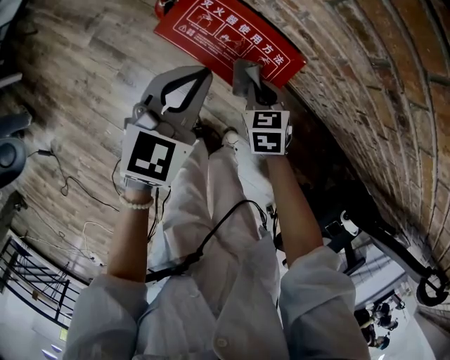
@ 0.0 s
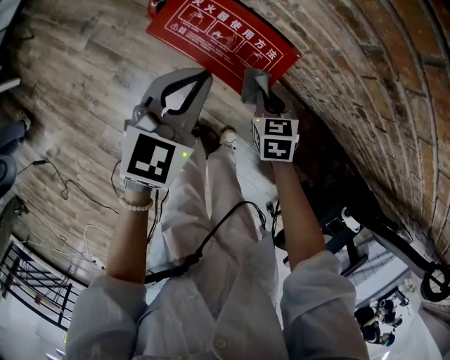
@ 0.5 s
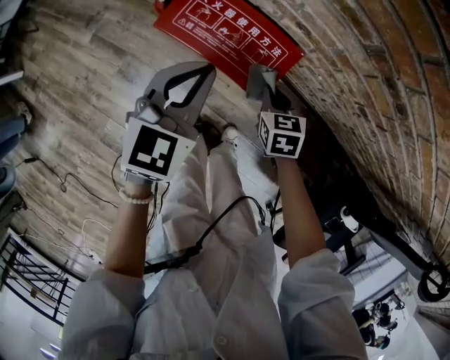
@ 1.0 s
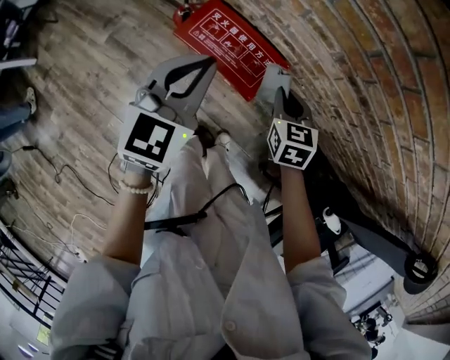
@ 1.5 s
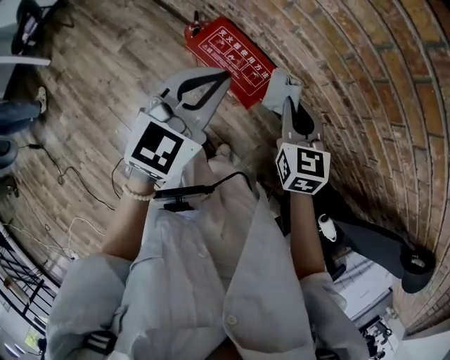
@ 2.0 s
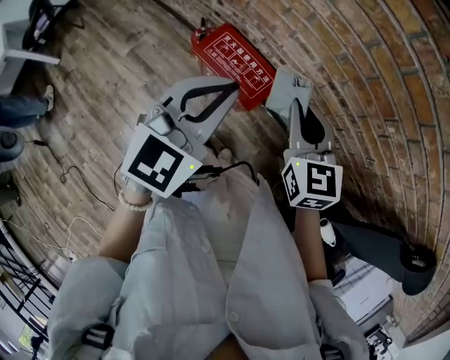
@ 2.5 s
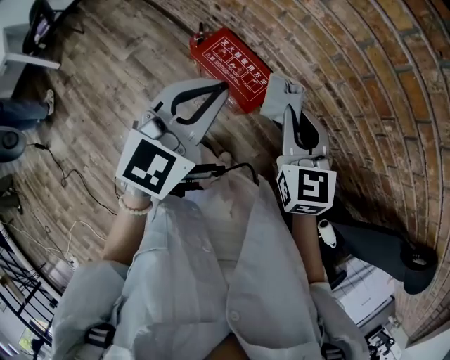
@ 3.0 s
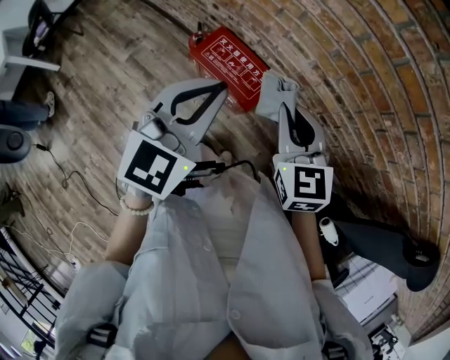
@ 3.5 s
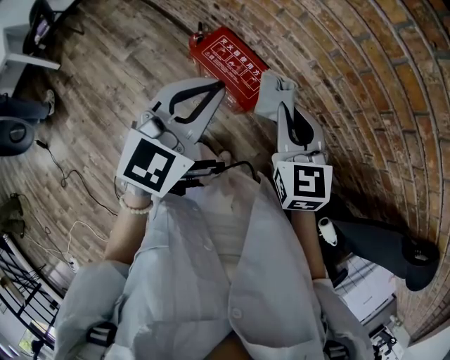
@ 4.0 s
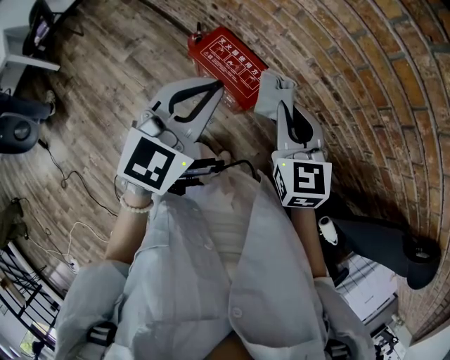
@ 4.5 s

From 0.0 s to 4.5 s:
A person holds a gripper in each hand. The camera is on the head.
From 0.0 s to 2.0 s: Both grippers travel together upward, some 30 cm. The right gripper rotates some 20 degrees.
From 2.0 s to 4.5 s: Both grippers travel together upward and backward, some 10 cm.

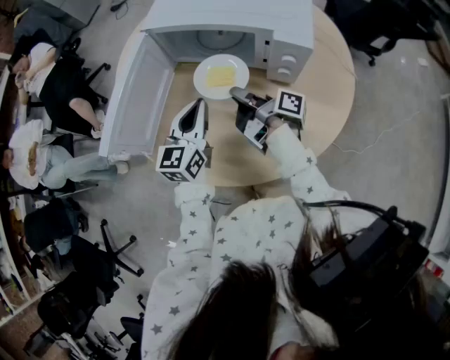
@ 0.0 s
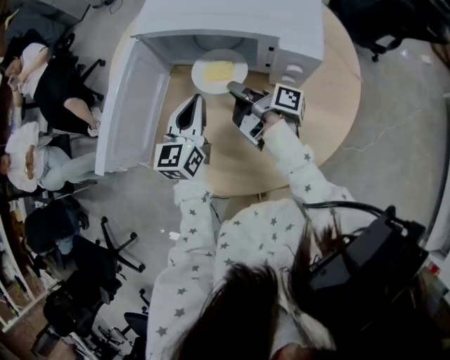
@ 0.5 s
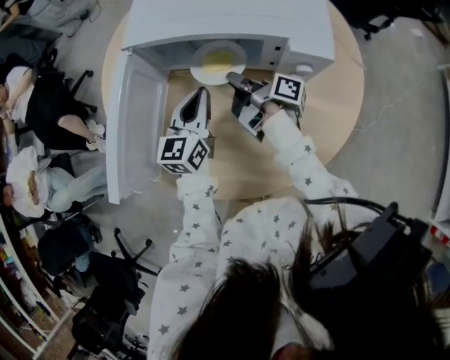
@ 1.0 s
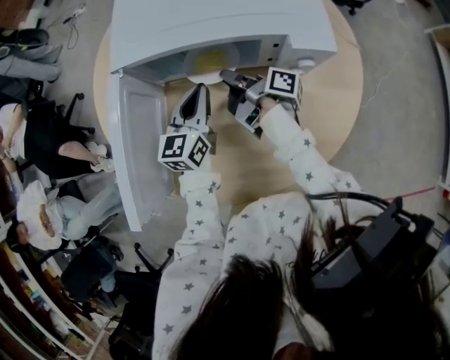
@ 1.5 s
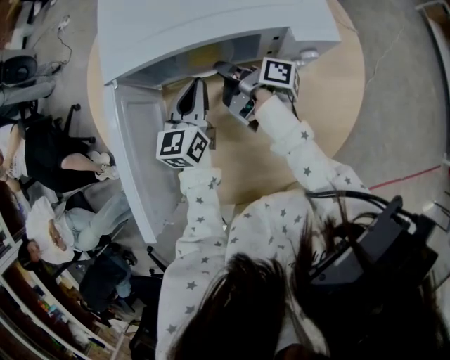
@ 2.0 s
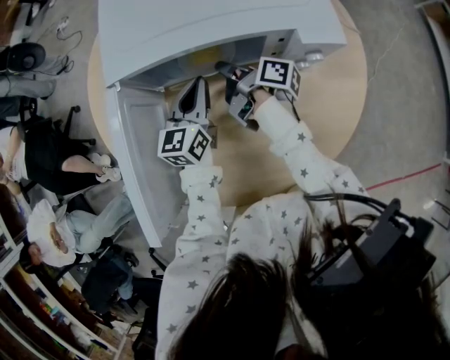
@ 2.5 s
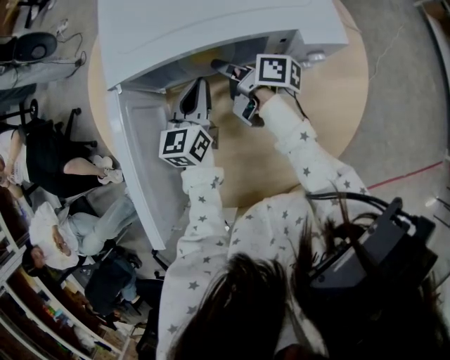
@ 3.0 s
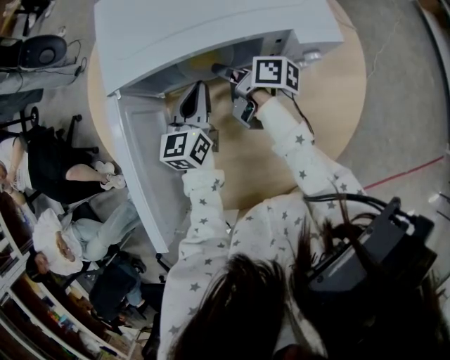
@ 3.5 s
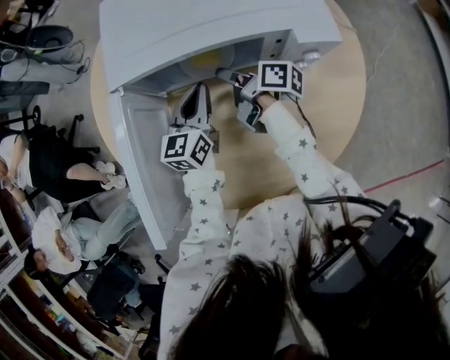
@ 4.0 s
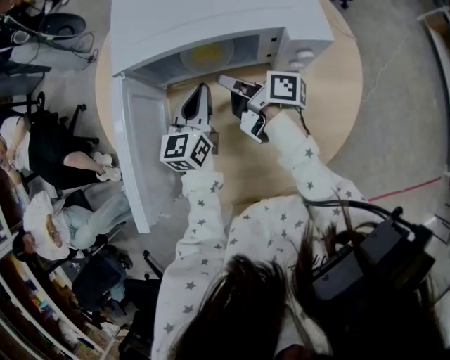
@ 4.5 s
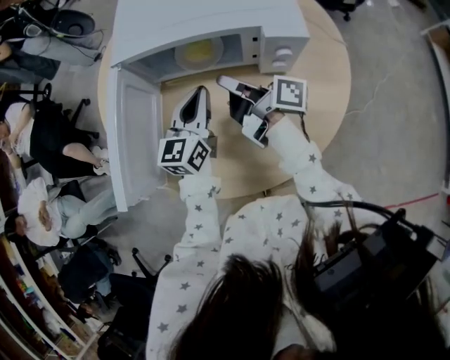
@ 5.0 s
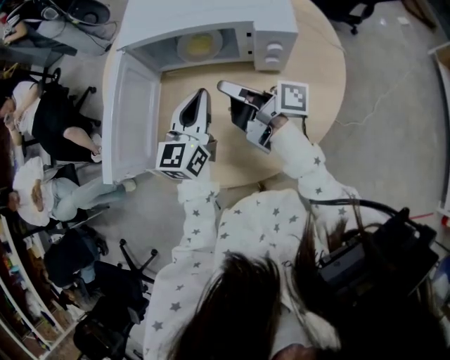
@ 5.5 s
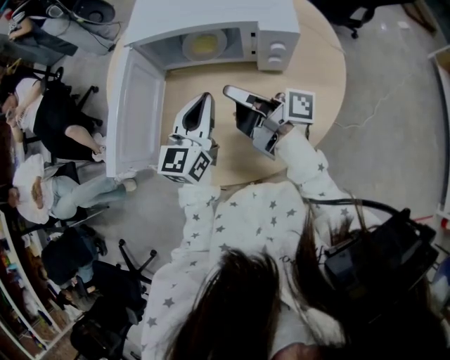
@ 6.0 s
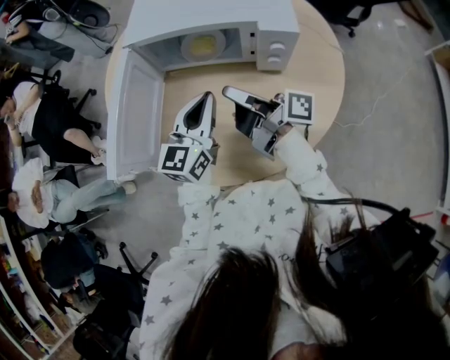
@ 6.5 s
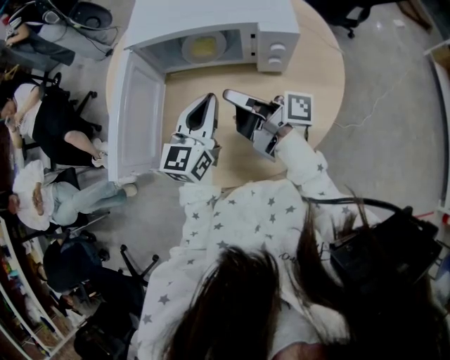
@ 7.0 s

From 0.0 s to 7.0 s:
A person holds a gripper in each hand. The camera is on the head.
From 0.0 s to 2.0 s: The left gripper shifts by roughly 5 cm.
From 3.5 s to 5.0 s: The left gripper changes place by some 10 cm.
From 5.0 s to 7.0 s: The left gripper shifts by roughly 10 cm.

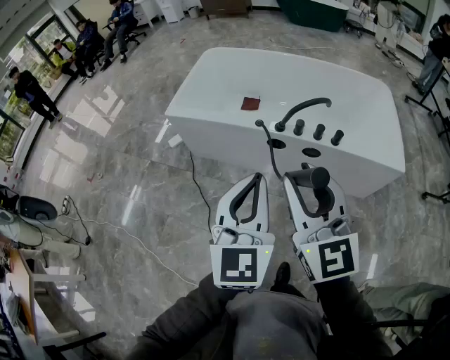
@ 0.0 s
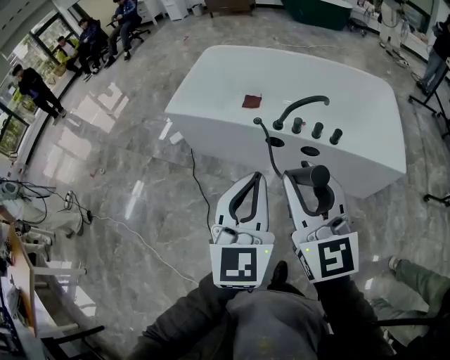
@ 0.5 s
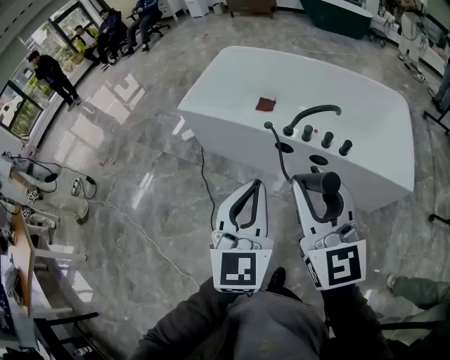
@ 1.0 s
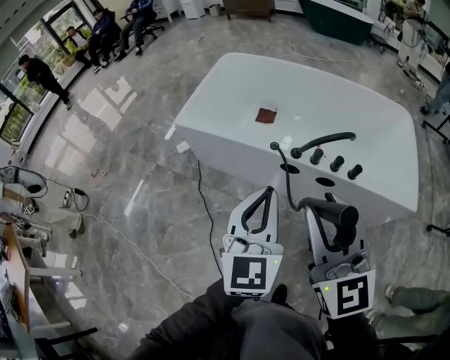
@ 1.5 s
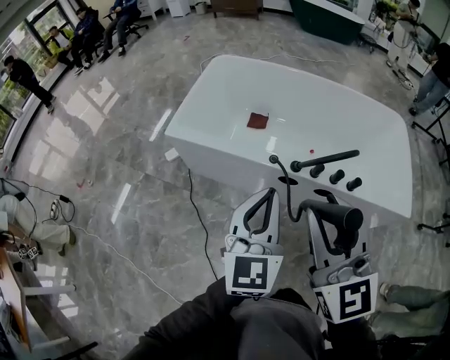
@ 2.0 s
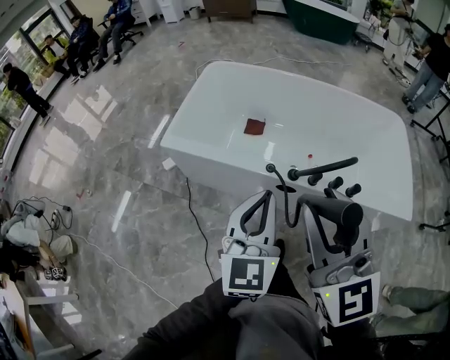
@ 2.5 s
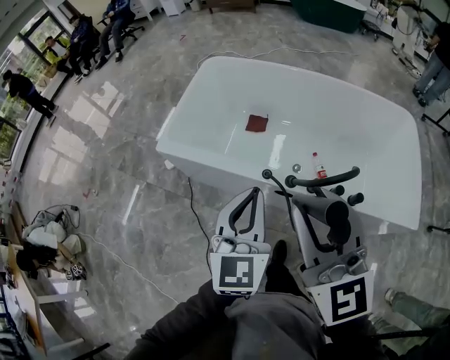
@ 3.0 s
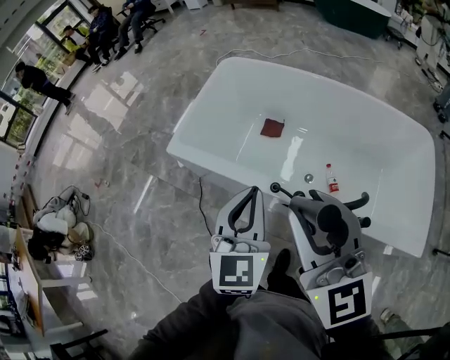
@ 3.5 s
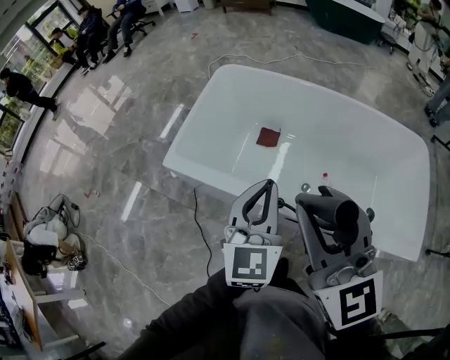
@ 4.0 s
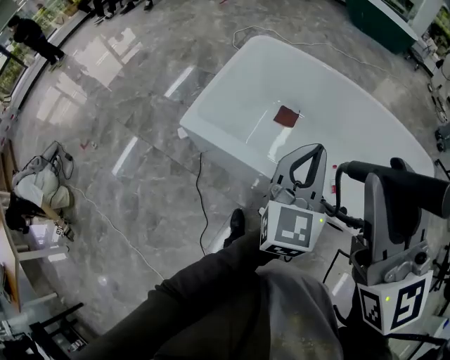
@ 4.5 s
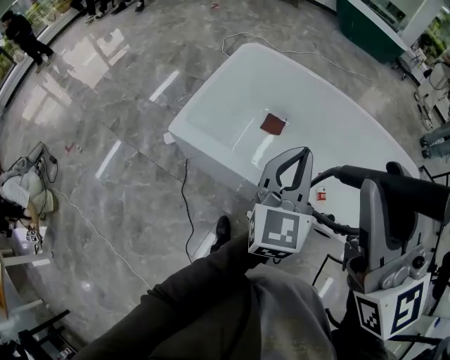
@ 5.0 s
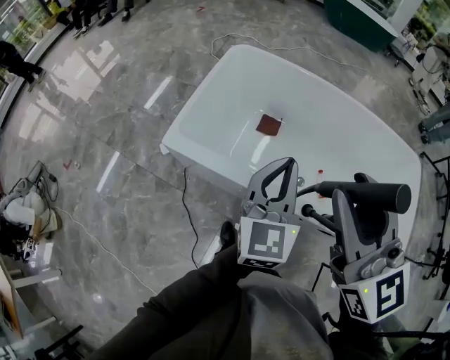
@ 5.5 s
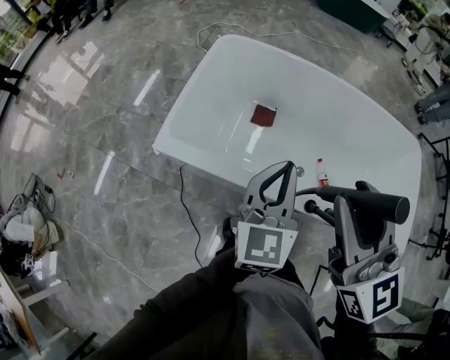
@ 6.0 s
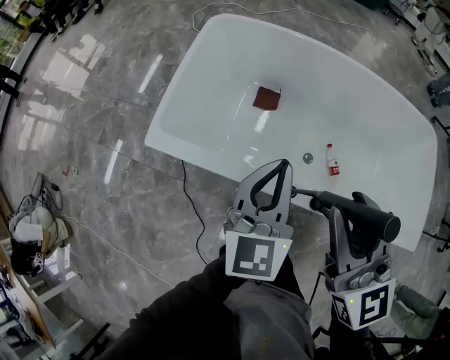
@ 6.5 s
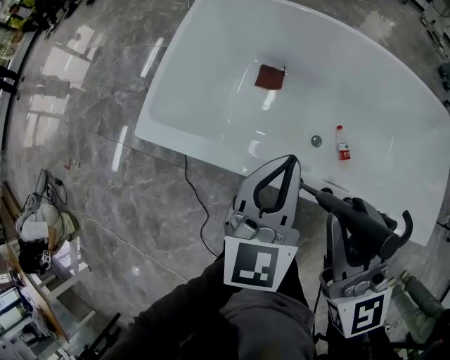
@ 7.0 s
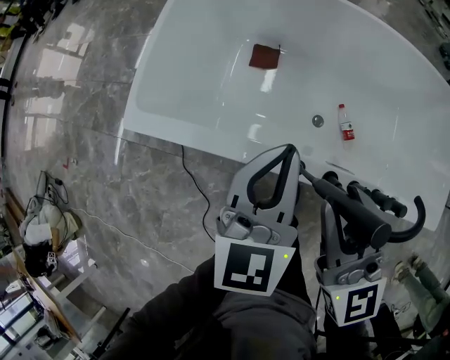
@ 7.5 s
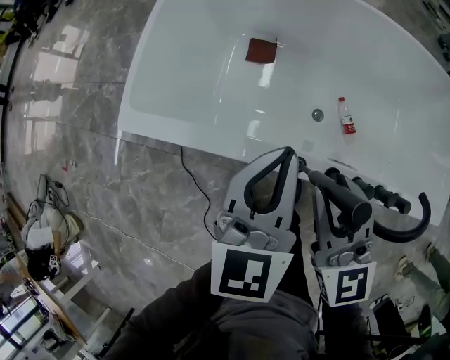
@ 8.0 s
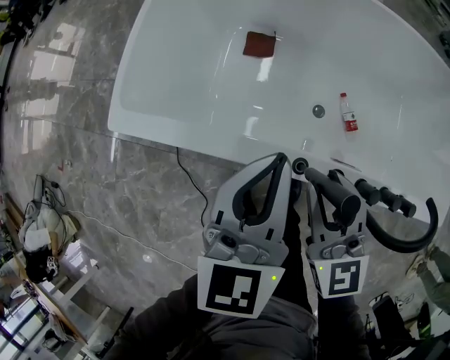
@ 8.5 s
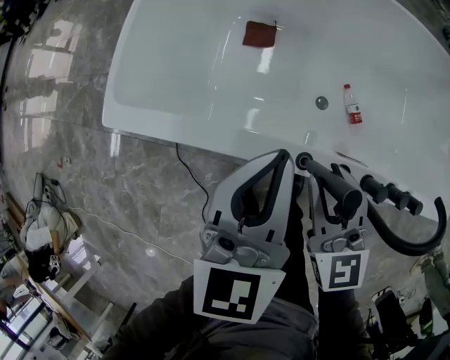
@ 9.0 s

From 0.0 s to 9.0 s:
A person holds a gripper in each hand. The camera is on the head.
From 0.0 s to 2.0 s: The two grippers go about 15 cm forward.
From 2.0 s to 4.5 s: Both grippers travel together forward, about 25 cm.
From 4.5 s to 7.0 s: The right gripper moves downward, approximately 25 cm, and swivels approximately 20 degrees, while the left gripper travels downward and forward by roughly 15 cm.
From 7.0 s to 9.0 s: The right gripper is displaced downward by roughly 20 cm; the left gripper travels downward by approximately 10 cm.

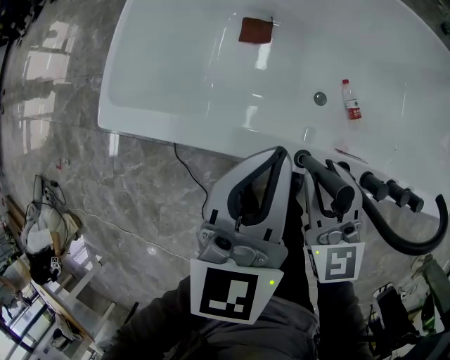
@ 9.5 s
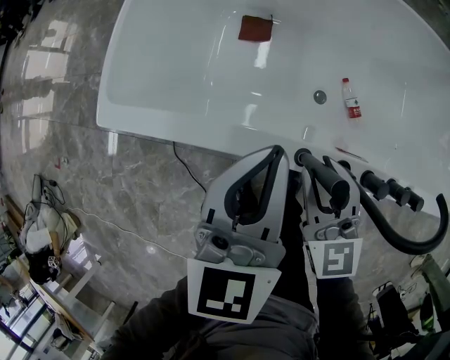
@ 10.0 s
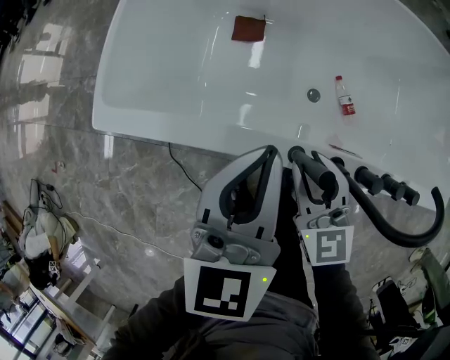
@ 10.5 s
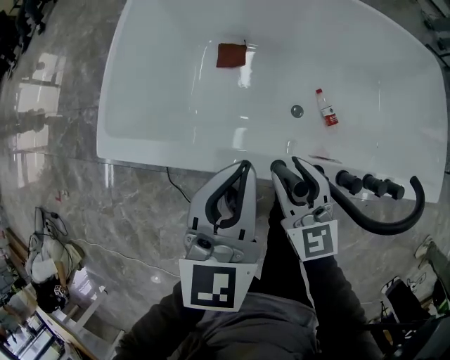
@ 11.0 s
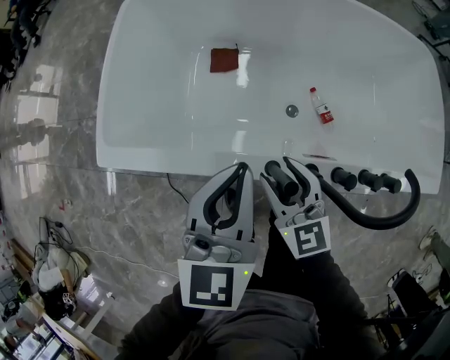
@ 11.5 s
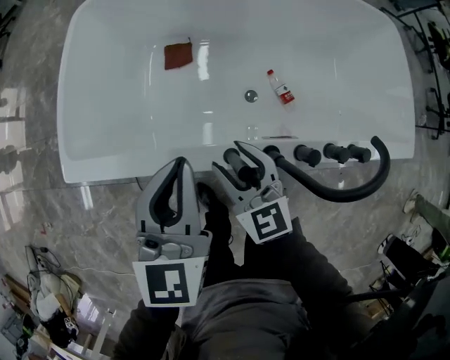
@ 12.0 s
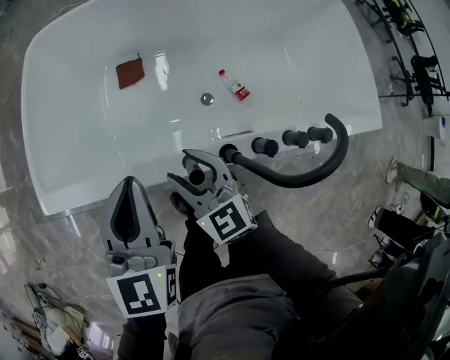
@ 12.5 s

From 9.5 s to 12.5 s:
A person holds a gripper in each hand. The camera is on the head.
From 9.5 s to 12.5 s: The grippers stay close to where they were, moving slightly.

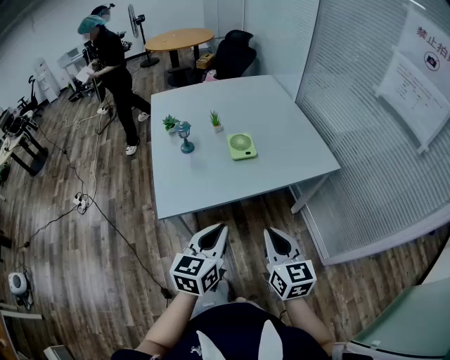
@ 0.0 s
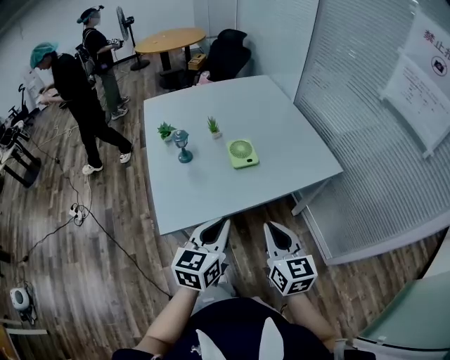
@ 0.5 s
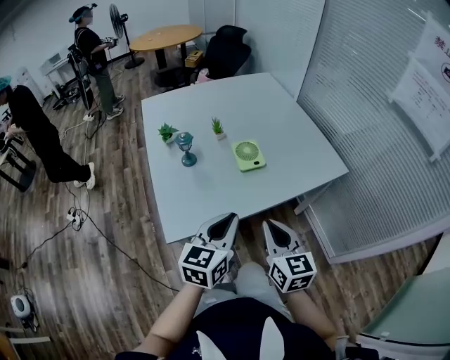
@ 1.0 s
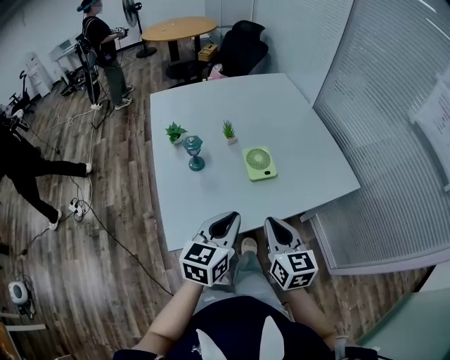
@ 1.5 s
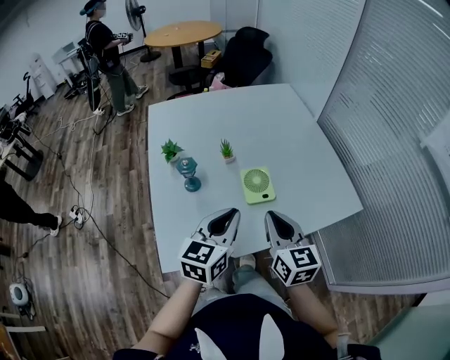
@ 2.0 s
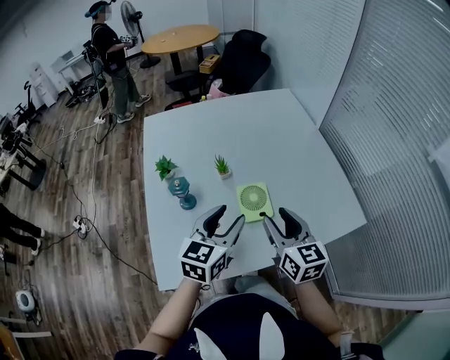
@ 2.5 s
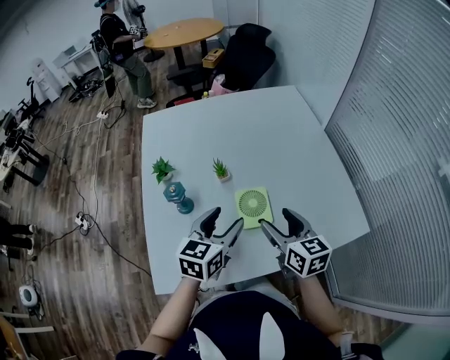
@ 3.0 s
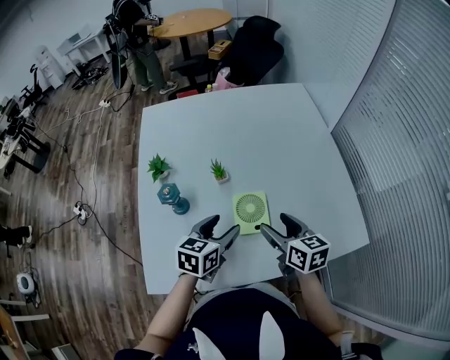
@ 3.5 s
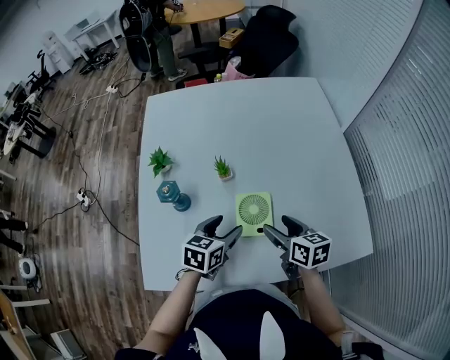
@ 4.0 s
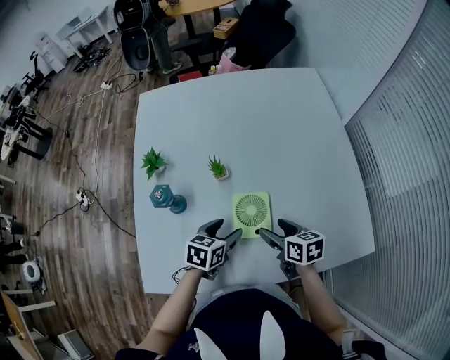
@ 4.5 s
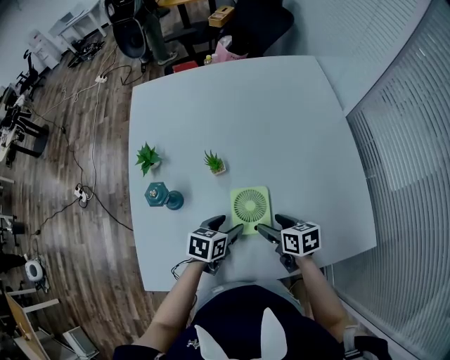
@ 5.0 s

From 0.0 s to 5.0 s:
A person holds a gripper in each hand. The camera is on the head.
From 0.0 s to 2.5 s: The grippers both shift forward by some 35 cm. The right gripper opens up. The left gripper opens.
From 2.5 s to 5.0 s: The left gripper travels downward by about 25 cm, and turns by roughly 40 degrees; the right gripper travels downward and forward by about 25 cm, turns by roughly 50 degrees, and opens its fingers.
